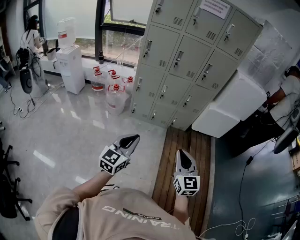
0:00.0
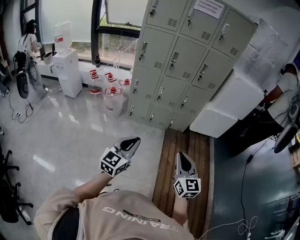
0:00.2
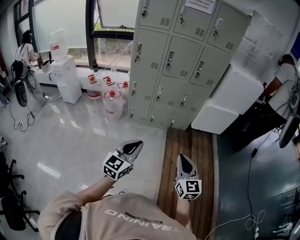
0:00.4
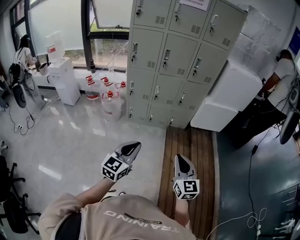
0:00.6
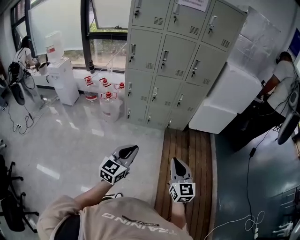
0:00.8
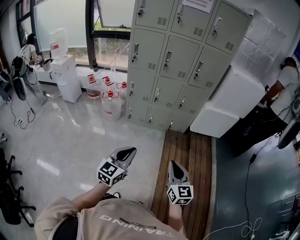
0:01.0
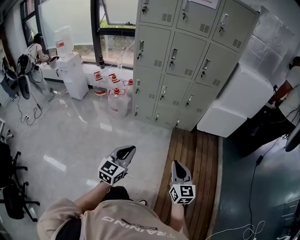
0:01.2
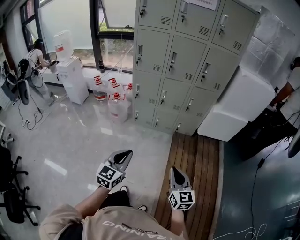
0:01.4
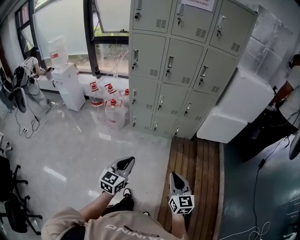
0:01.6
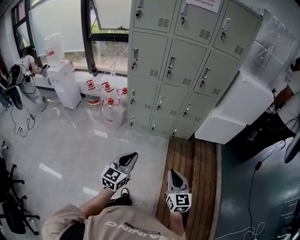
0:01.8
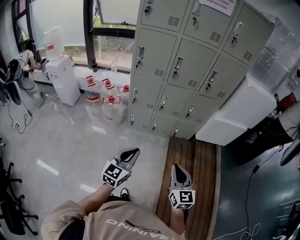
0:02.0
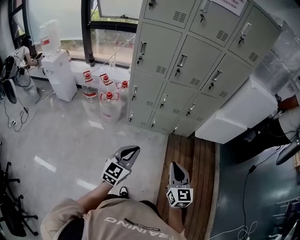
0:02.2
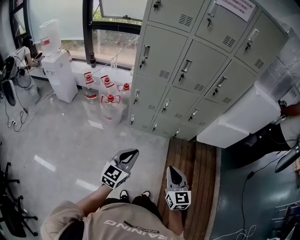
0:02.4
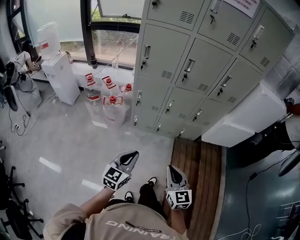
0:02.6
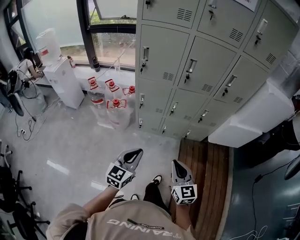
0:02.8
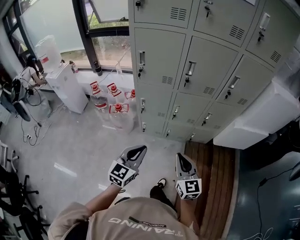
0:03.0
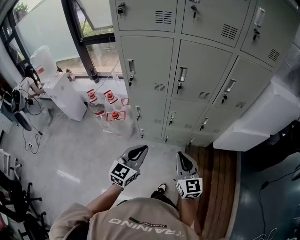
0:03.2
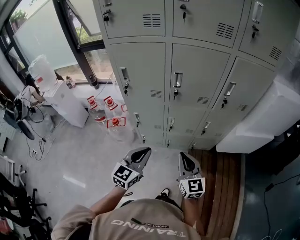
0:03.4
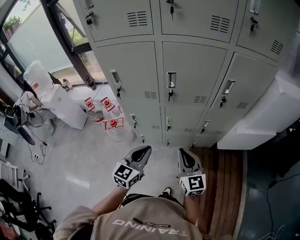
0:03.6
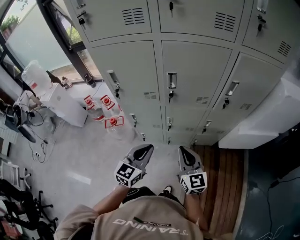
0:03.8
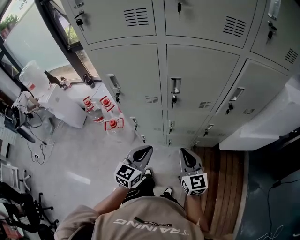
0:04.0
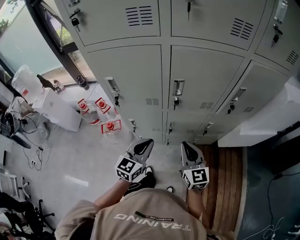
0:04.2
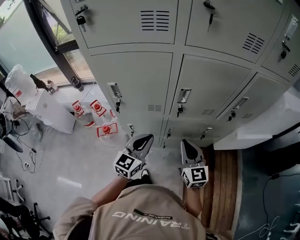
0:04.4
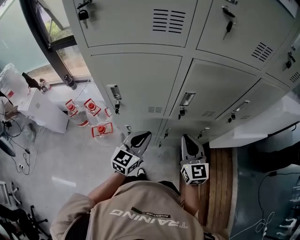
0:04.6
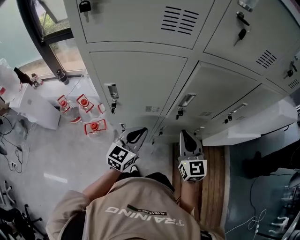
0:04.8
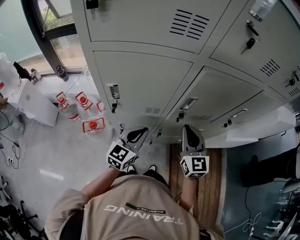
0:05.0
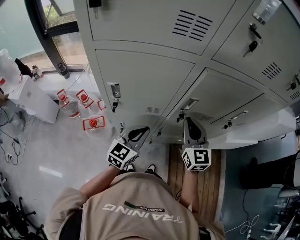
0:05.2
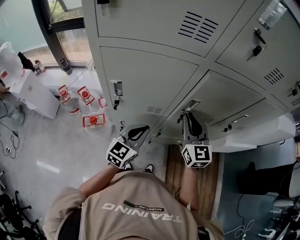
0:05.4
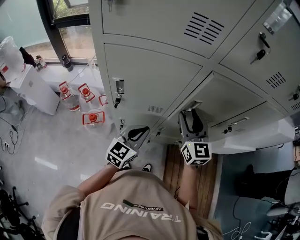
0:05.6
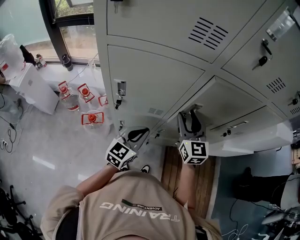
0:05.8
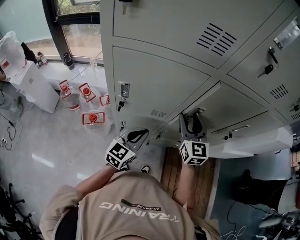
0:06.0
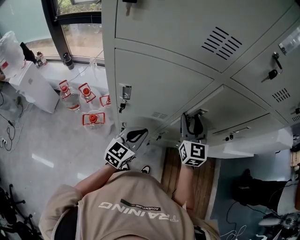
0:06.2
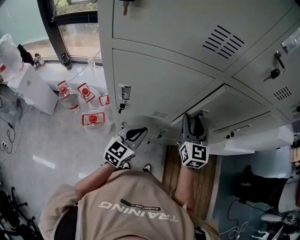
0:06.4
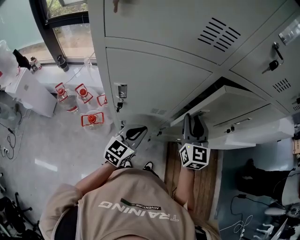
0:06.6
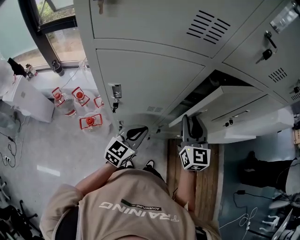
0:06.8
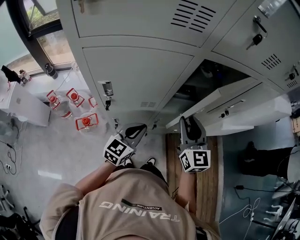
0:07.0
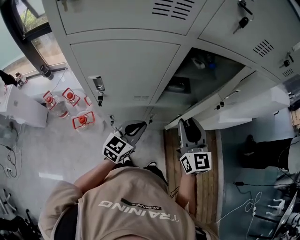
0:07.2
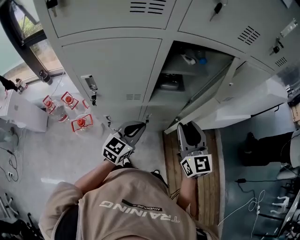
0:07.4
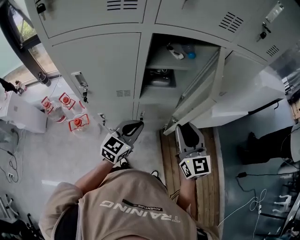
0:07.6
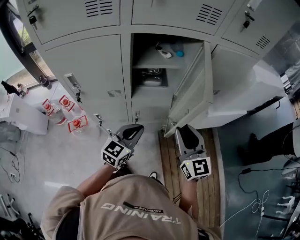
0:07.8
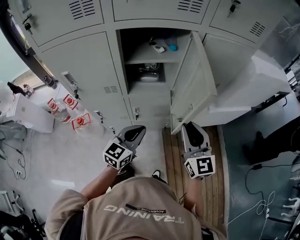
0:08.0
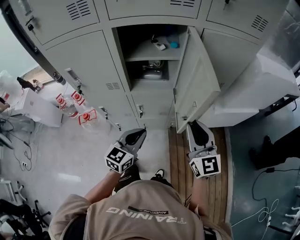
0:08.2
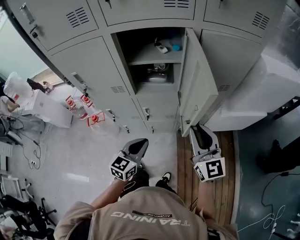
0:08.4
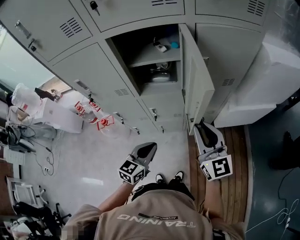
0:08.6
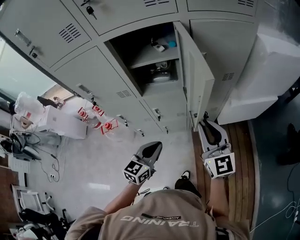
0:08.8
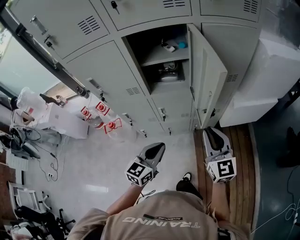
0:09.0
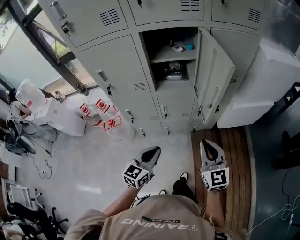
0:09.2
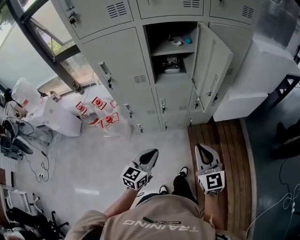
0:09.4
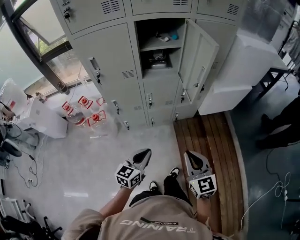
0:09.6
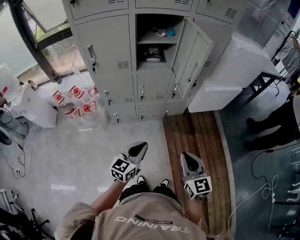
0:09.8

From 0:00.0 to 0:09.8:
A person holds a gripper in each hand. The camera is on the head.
From 0:00.0 to 0:01.4: The right gripper goes about 10 cm downward and to the right; the left gripper travels downward by roughly 5 cm.
From 0:01.4 to 0:02.8: The right gripper moves forward and to the left, about 30 cm. The left gripper travels forward by some 25 cm.
From 0:02.8 to 0:04.2: Both grippers travel together forward, roughly 35 cm.
From 0:04.2 to 0:05.6: The left gripper goes about 10 cm forward and to the left, while the right gripper heads forward, upward and to the left, covering about 20 cm, and opens up.
From 0:05.6 to 0:07.0: The right gripper ends up approximately 5 cm from where it was.
From 0:07.0 to 0:08.4: The left gripper heads to the right and backward, covering about 25 cm; the right gripper heads to the right, covering approximately 25 cm.
From 0:08.4 to 0:09.8: The grippers both shift backward by about 30 cm.

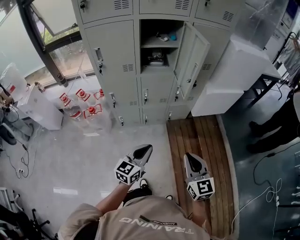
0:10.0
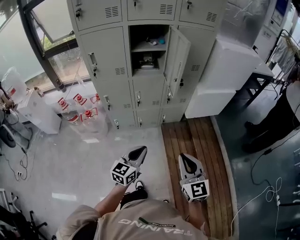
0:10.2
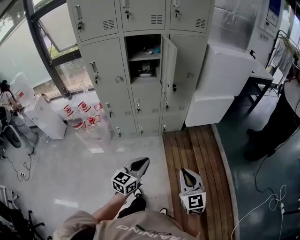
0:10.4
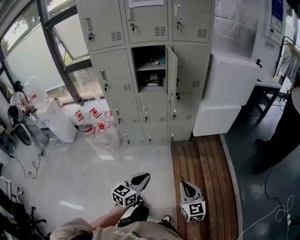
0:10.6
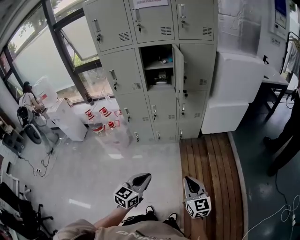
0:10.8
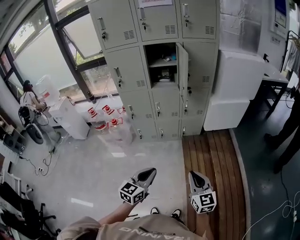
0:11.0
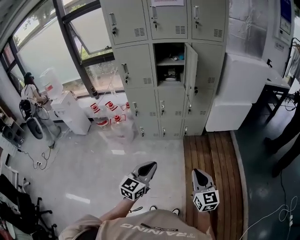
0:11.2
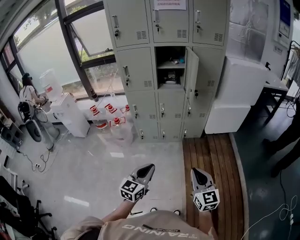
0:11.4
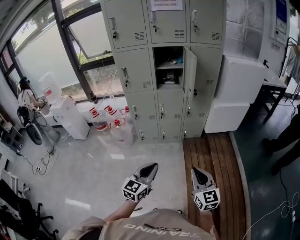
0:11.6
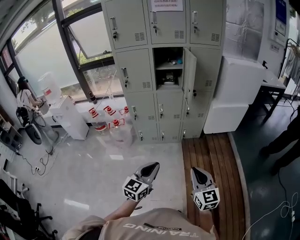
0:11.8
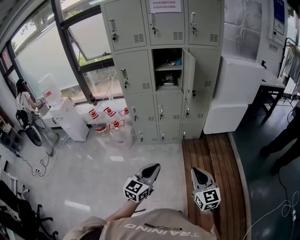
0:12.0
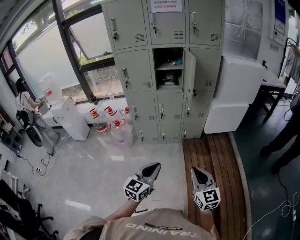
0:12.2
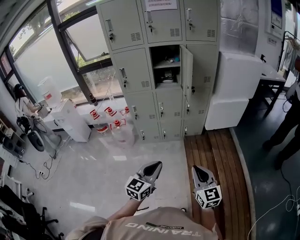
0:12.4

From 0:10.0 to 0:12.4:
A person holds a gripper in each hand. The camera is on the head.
From 0:10.0 to 0:11.2: The right gripper shifts some 20 cm backward and to the right, while the left gripper goes approximately 20 cm backward.
From 0:11.2 to 0:12.4: The grippers stay close to where they were, moving slightly.

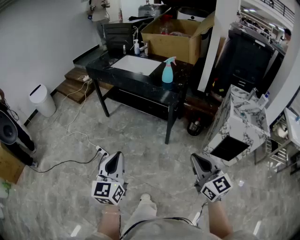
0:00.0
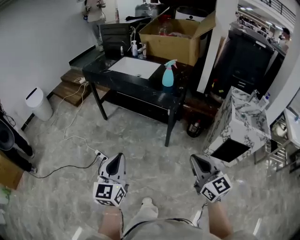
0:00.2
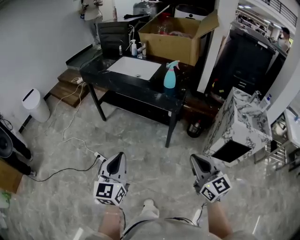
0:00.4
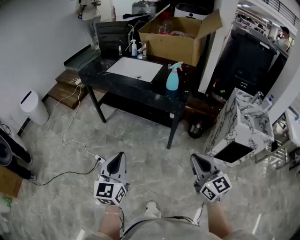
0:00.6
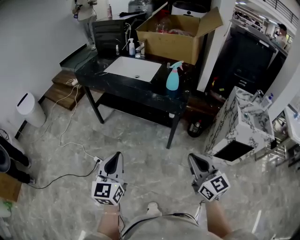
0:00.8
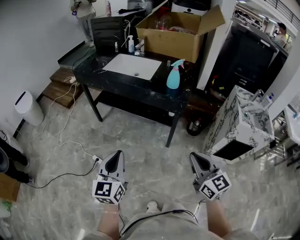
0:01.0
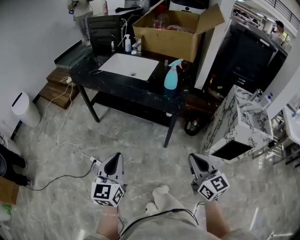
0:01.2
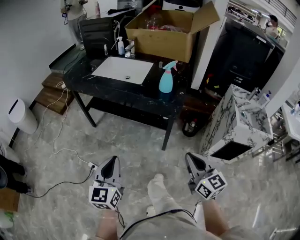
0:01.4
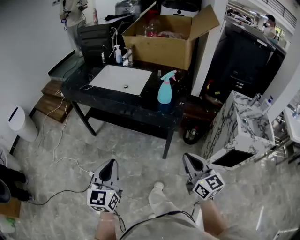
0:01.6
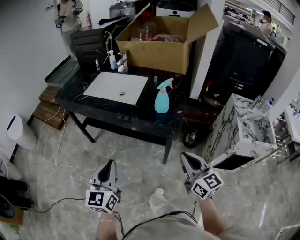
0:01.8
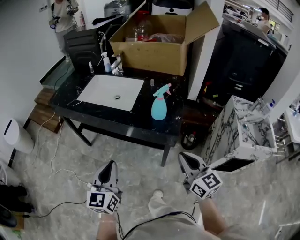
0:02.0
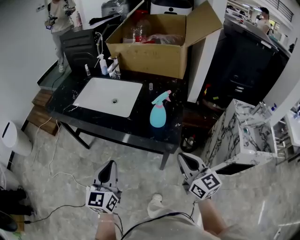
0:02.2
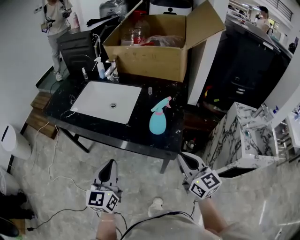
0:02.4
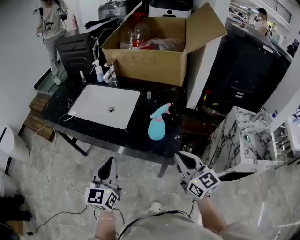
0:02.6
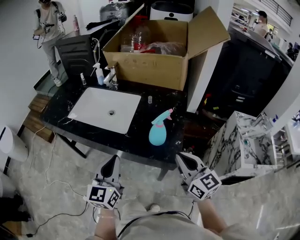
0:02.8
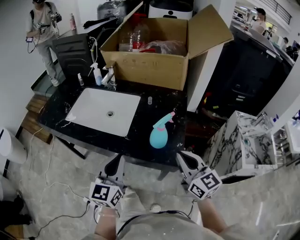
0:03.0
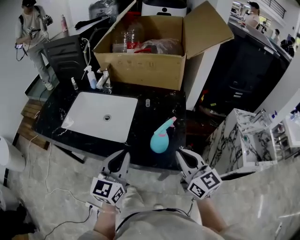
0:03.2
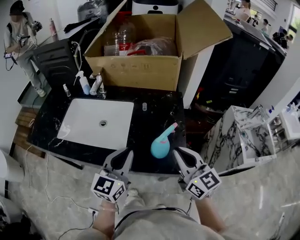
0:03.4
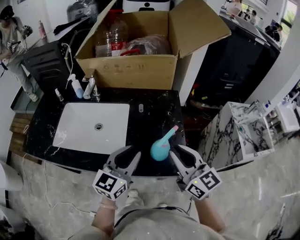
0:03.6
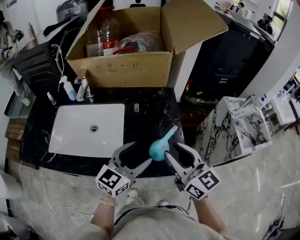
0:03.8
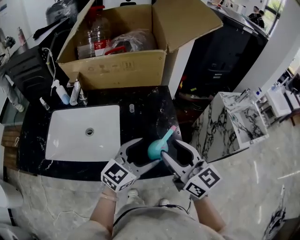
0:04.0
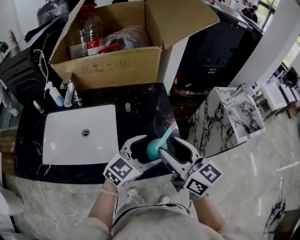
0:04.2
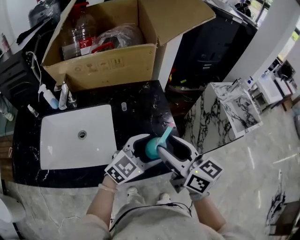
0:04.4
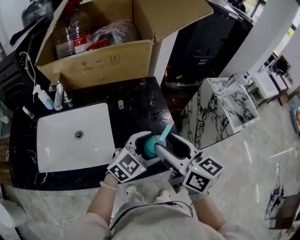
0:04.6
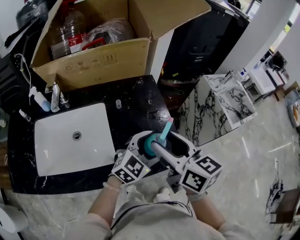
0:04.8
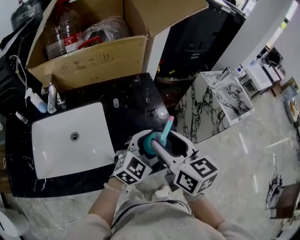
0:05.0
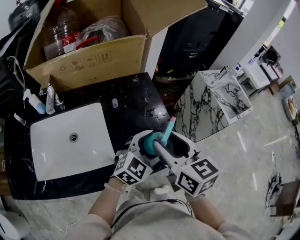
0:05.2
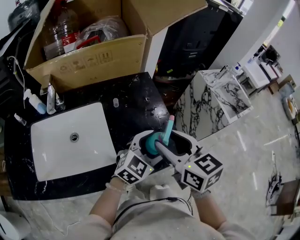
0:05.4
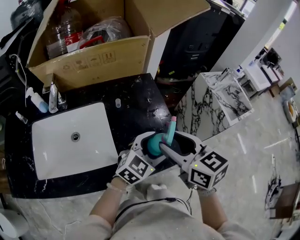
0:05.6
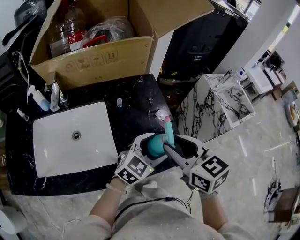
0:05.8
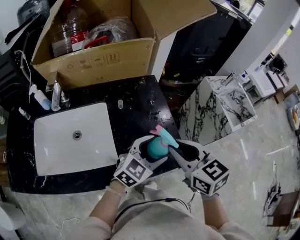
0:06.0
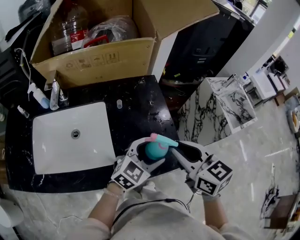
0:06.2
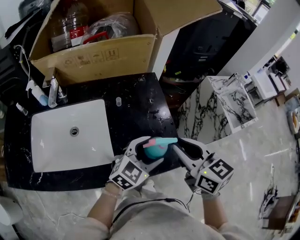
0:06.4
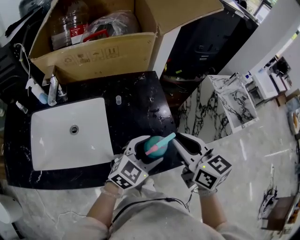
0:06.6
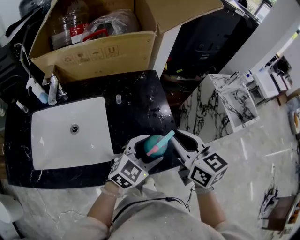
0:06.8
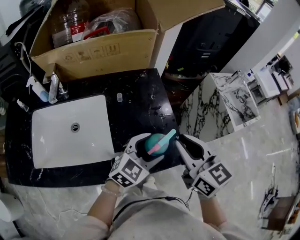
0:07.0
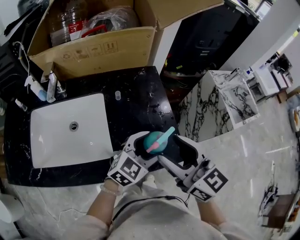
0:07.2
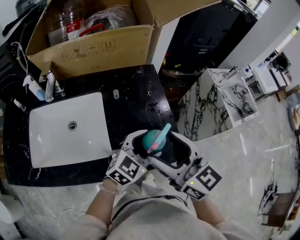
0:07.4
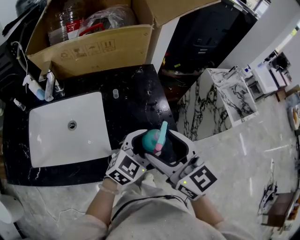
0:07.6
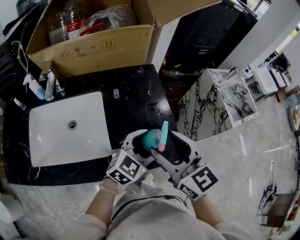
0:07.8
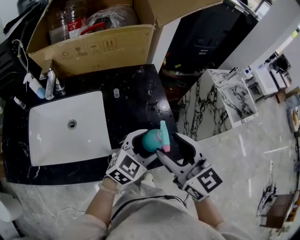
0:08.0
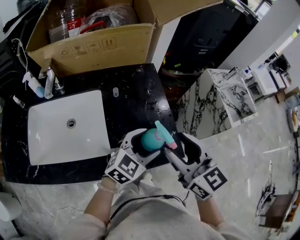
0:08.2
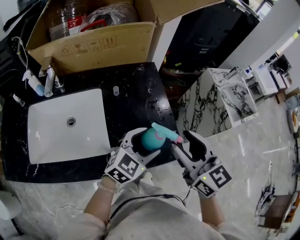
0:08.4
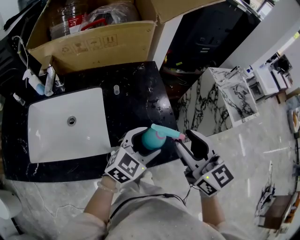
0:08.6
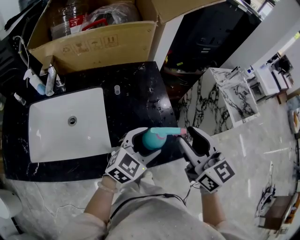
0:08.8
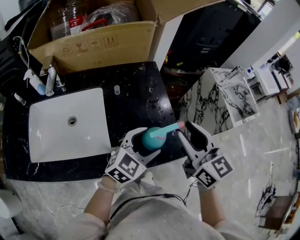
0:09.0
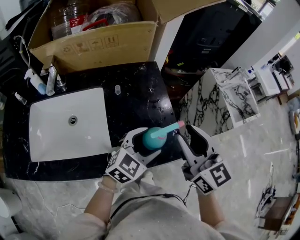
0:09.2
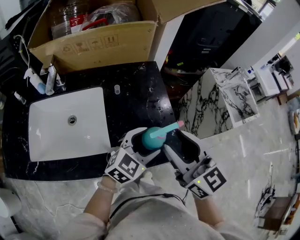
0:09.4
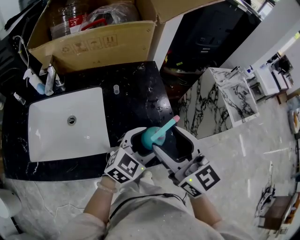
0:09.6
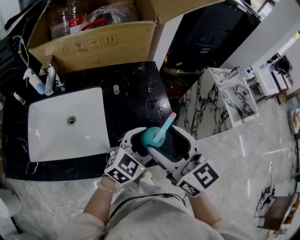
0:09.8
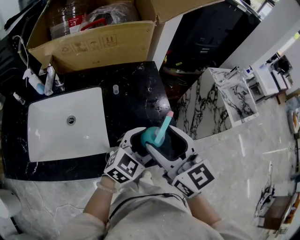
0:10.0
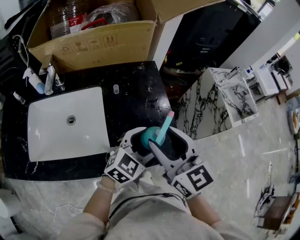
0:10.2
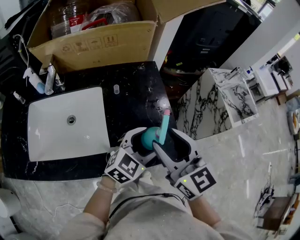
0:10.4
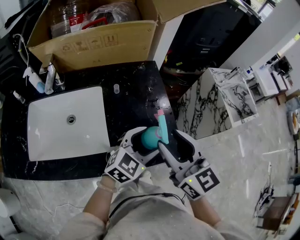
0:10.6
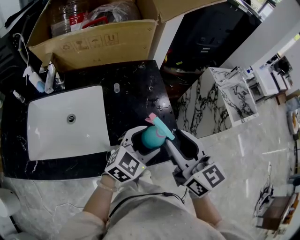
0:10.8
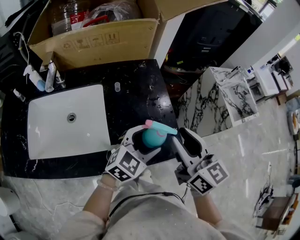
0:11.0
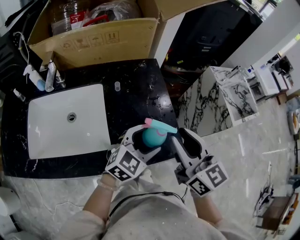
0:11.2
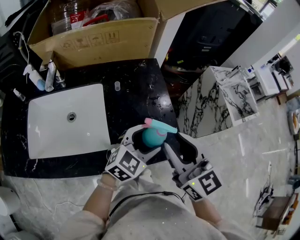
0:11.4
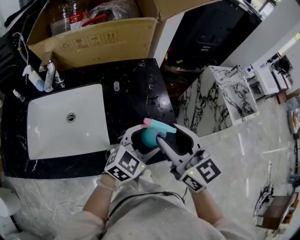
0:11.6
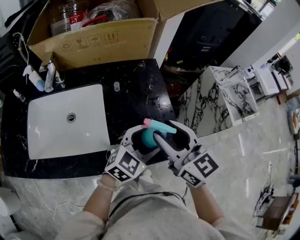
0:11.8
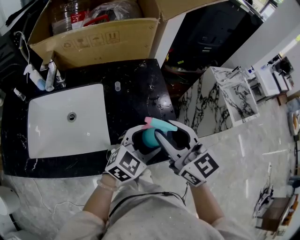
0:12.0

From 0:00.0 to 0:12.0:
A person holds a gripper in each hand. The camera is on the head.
From 0:00.0 to 0:01.6: The grippers both shift forward by some 25 cm.
From 0:01.6 to 0:03.0: The grippers both shift forward by approximately 30 cm.
From 0:03.0 to 0:04.4: The right gripper shifts by some 10 cm, changes its angle by about 30 degrees, and opens its fingers, while the left gripper moves some 20 cm, swivels about 70 degrees, and opens its fingers.
From 0:04.4 to 0:06.0: The right gripper turns by about 30 degrees, and closes up.
From 0:06.0 to 0:07.6: The right gripper opens up.
From 0:07.6 to 0:09.0: The right gripper moves to the right, roughly 10 cm, and closes.
From 0:09.0 to 0:10.4: The right gripper is displaced to the left by some 5 cm.
From 0:10.4 to 0:12.0: The grippers stay close to where they were, moving slightly.
